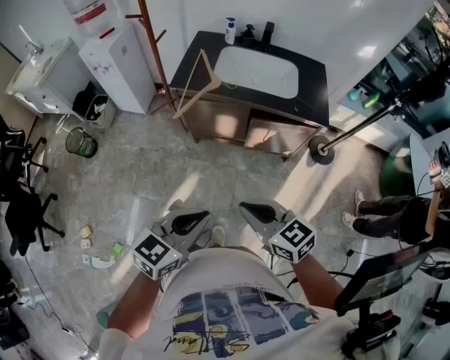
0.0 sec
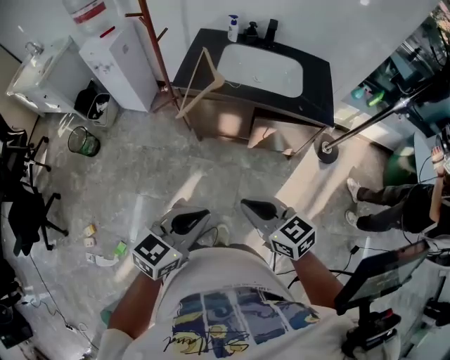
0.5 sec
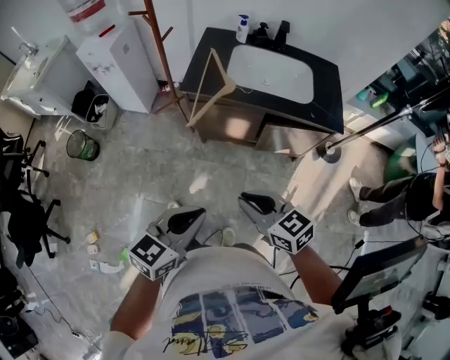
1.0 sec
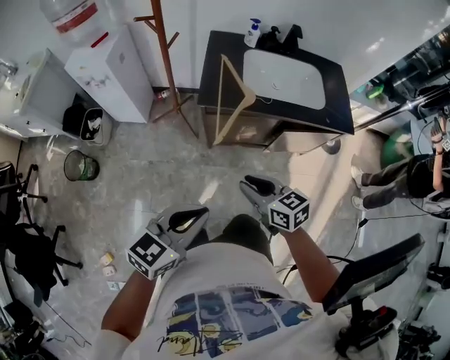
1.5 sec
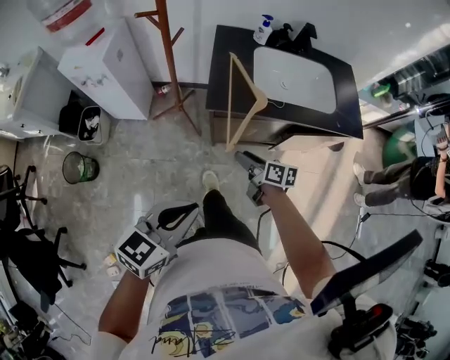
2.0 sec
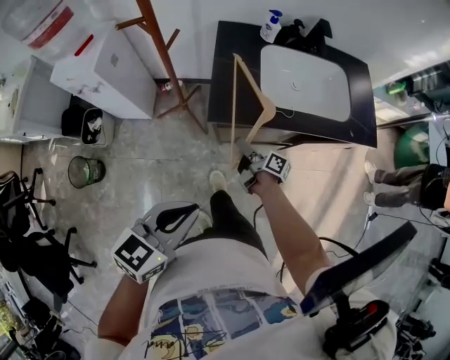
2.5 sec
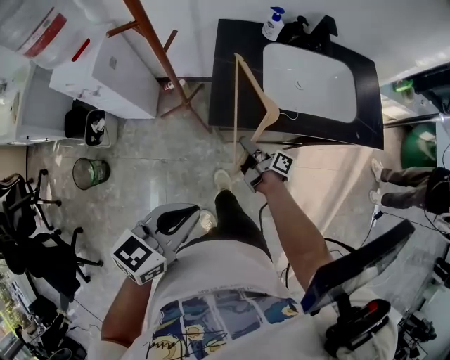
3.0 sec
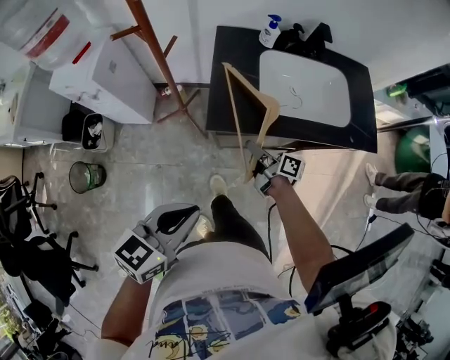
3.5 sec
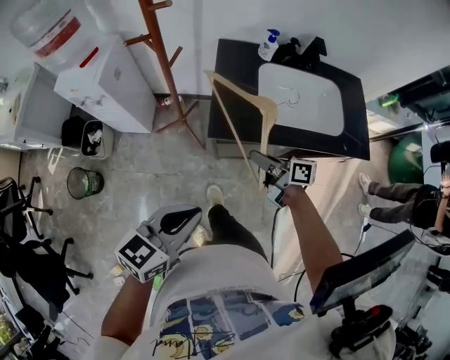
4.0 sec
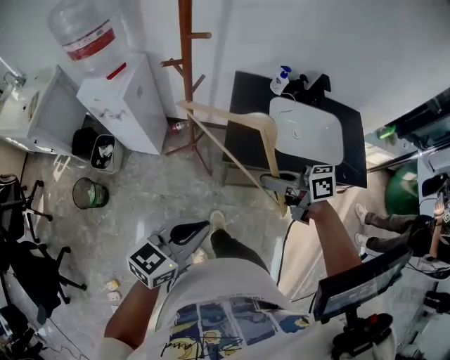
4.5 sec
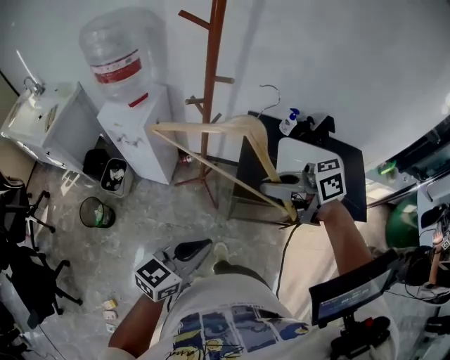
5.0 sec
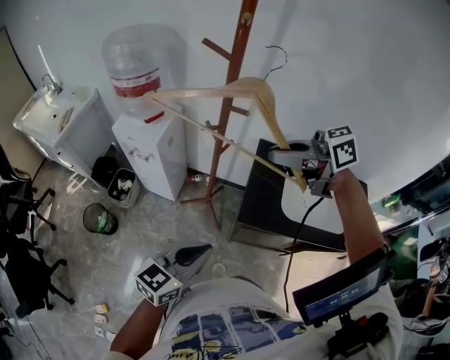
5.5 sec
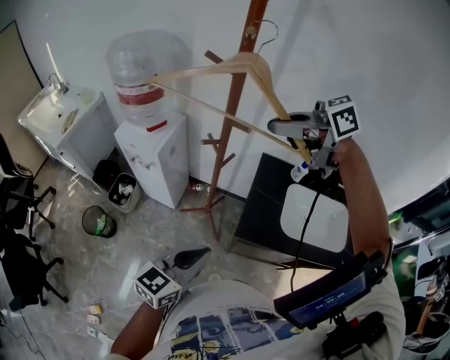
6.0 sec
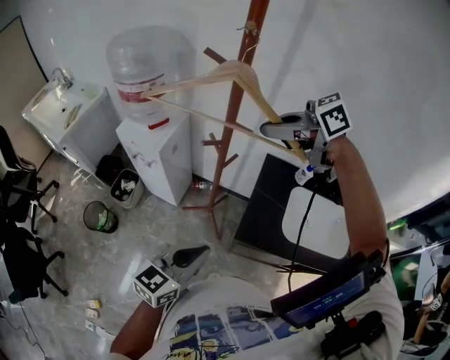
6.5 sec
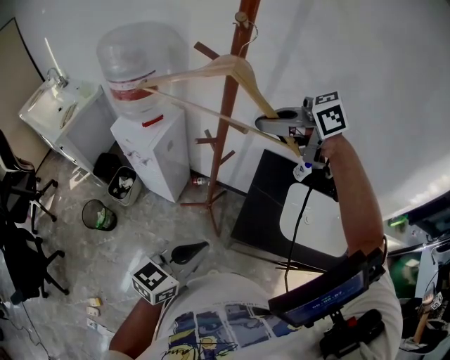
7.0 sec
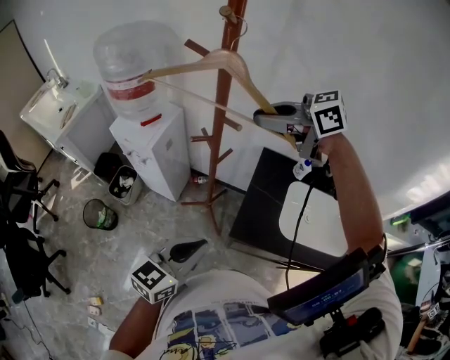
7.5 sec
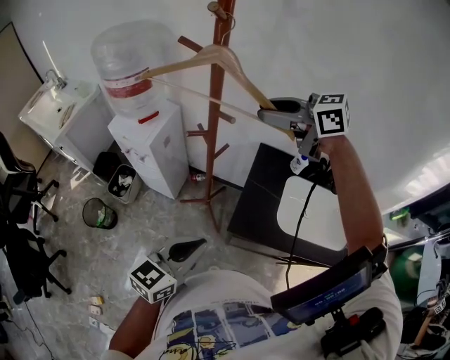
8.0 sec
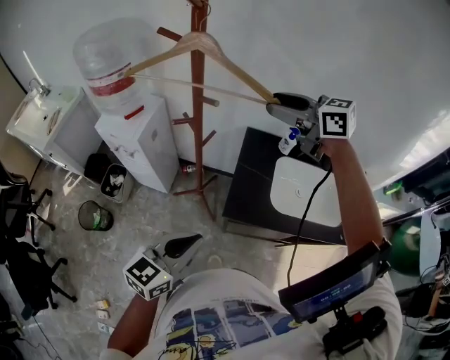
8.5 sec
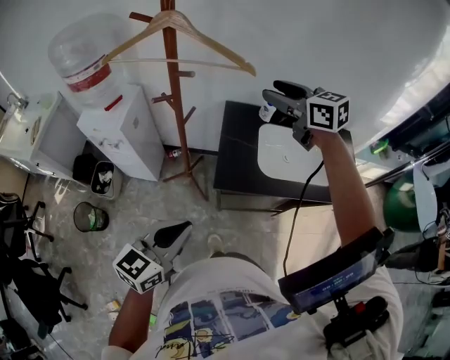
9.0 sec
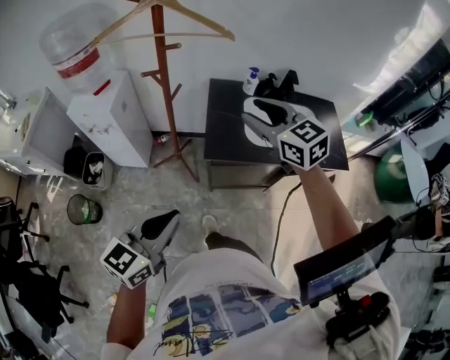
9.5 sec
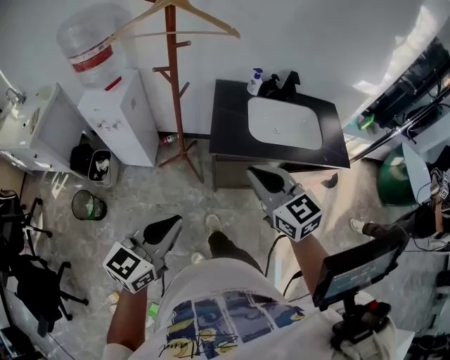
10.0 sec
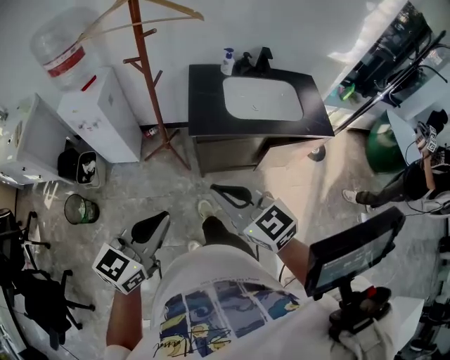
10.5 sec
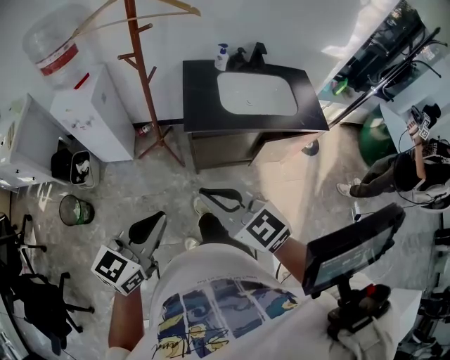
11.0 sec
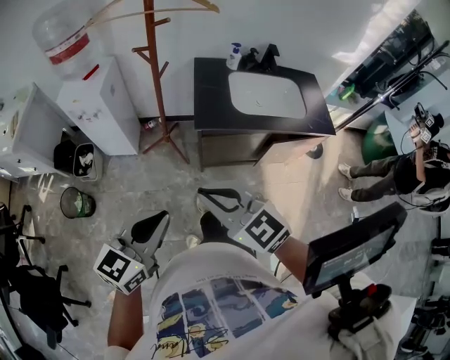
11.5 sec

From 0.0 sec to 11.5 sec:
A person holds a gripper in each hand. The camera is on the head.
From 0.0 sec to 2.0 sec: The right gripper travels forward, to the left and downward by some 40 cm, twists approximately 50 degrees clockwise, seen from behind, and opens up; the left gripper travels to the left and forward by some 35 cm.
From 2.0 sec to 4.0 sec: The right gripper goes some 15 cm forward and upward, turns by about 20 degrees, and closes its fingers; the left gripper is displaced forward by roughly 10 cm.
From 4.0 sec to 6.0 sec: The left gripper moves about 15 cm, and rotates roughly 20 degrees. Meanwhile the right gripper moves upward, some 40 cm, and rotates about 70 degrees.
From 6.0 sec to 7.5 sec: The left gripper shifts by about 5 cm, while the right gripper changes place by approximately 5 cm.
From 7.5 sec to 9.5 sec: The left gripper changes place by about 15 cm, while the right gripper changes place by about 25 cm, rotates some 50 degrees, and opens its fingers.
From 9.5 sec to 11.5 sec: The left gripper travels backward by roughly 10 cm; the right gripper is displaced backward and to the left by approximately 35 cm, and closes its fingers.

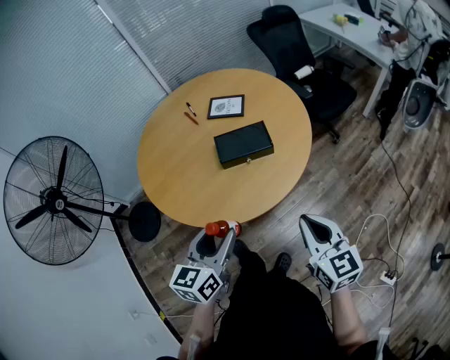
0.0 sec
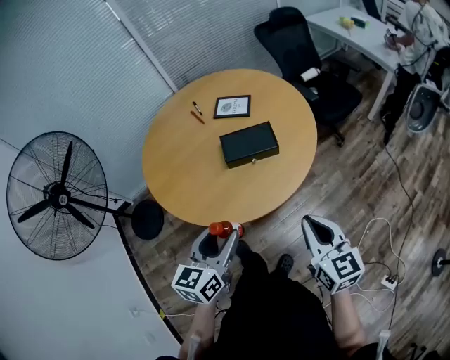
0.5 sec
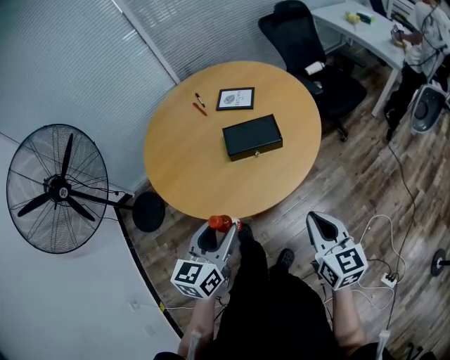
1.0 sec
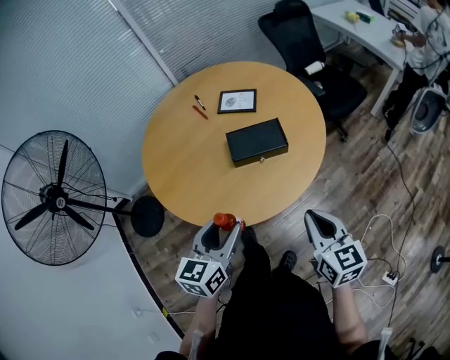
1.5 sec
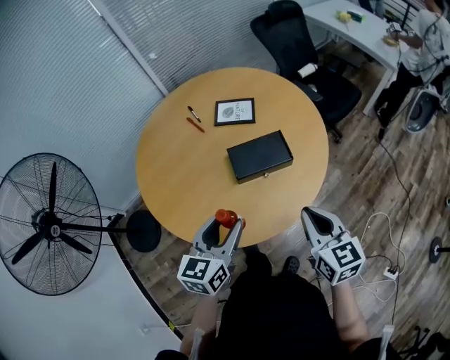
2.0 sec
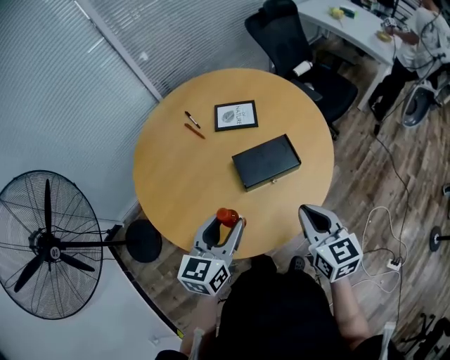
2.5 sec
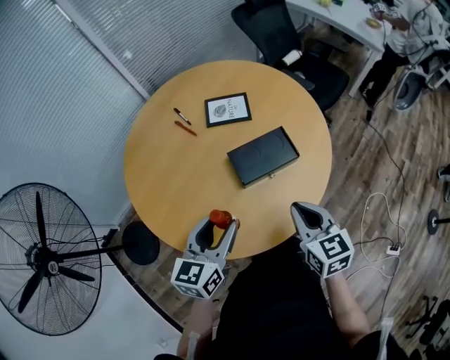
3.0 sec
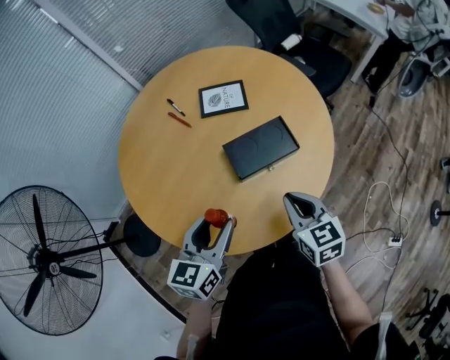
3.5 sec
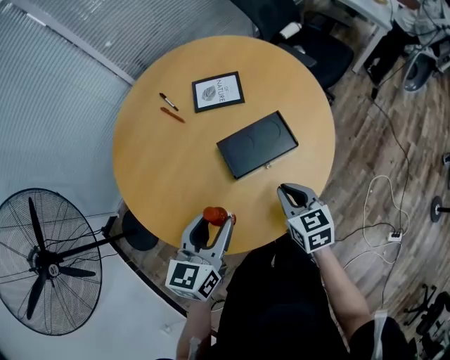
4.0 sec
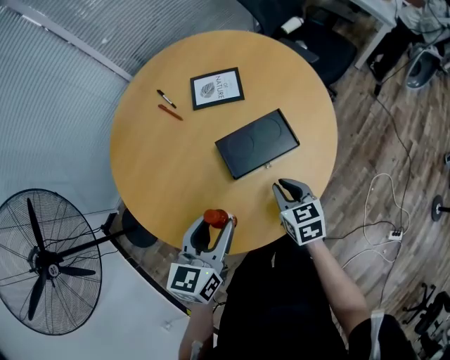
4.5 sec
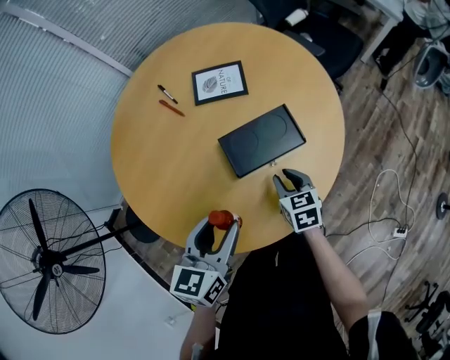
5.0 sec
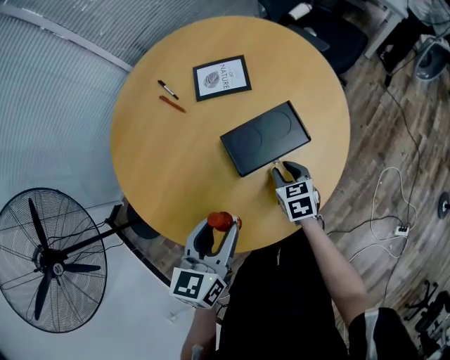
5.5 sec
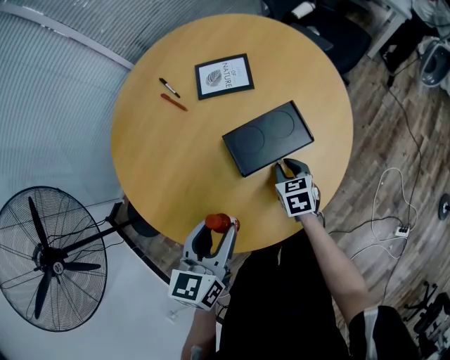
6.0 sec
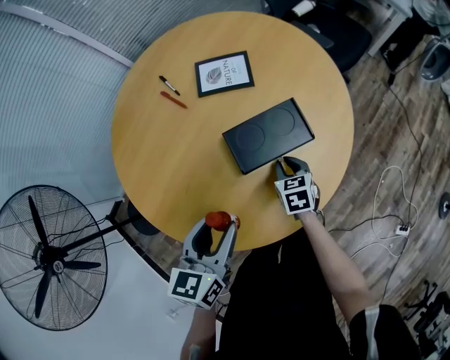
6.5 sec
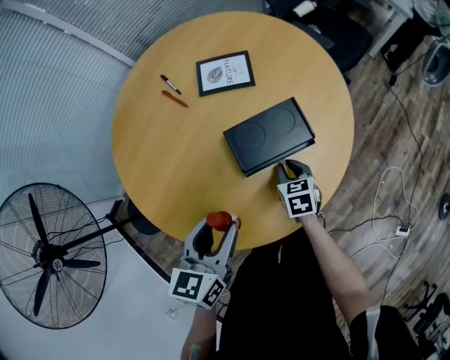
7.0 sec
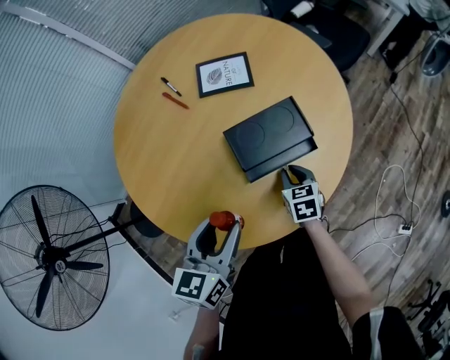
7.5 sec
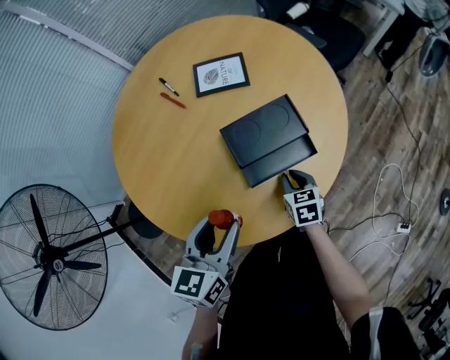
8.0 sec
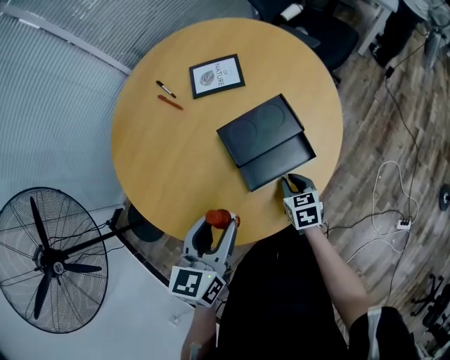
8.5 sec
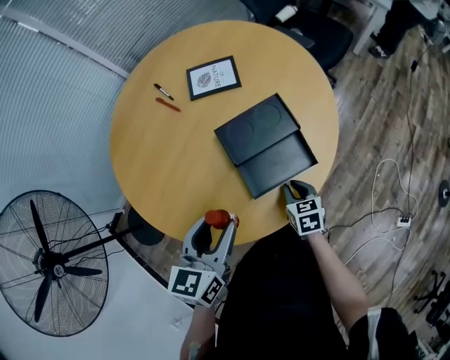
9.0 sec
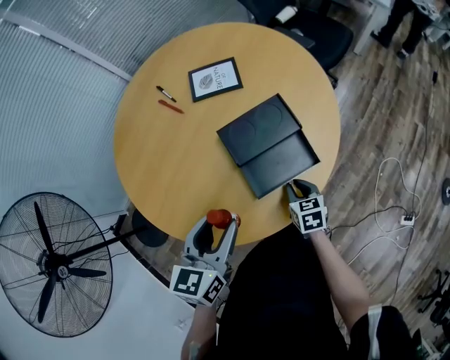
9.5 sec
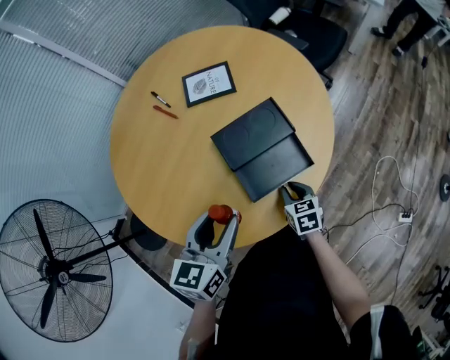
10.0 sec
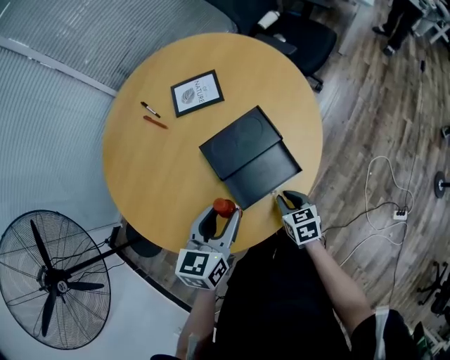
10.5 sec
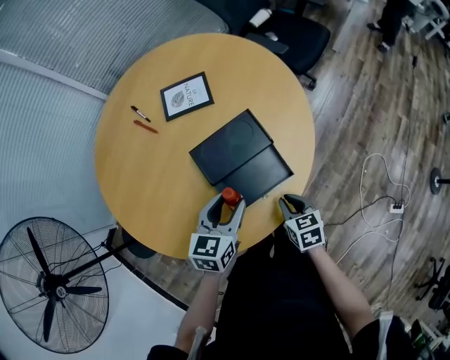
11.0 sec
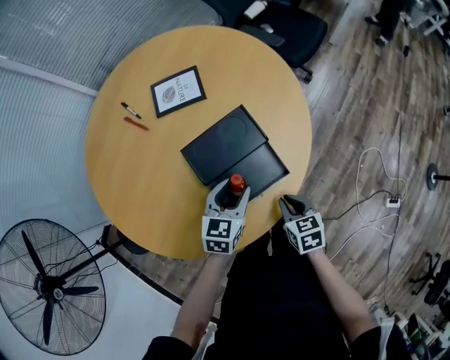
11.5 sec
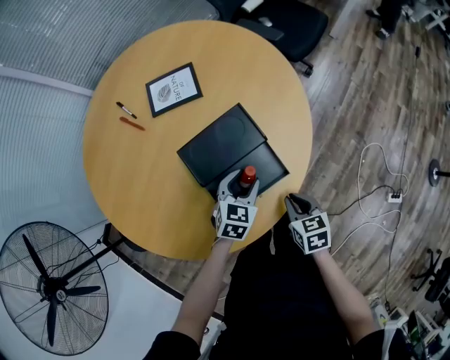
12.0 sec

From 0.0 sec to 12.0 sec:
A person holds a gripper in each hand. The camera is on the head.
From 0.0 sec to 2.0 sec: Both grippers travel together forward and to the left, some 15 cm.
From 2.0 sec to 4.0 sec: The left gripper shifts about 5 cm forward, while the right gripper moves downward, forward and to the left, some 20 cm.
From 4.0 sec to 6.0 sec: The right gripper is displaced downward and forward by approximately 15 cm.
From 6.0 sec to 8.0 sec: The right gripper travels backward by about 5 cm.
From 8.0 sec to 10.0 sec: The right gripper shifts by roughly 5 cm.
From 10.0 sec to 12.0 sec: The right gripper heads to the right, covering roughly 10 cm; the left gripper travels downward, to the right and forward by approximately 25 cm, and changes its angle by some 30 degrees.

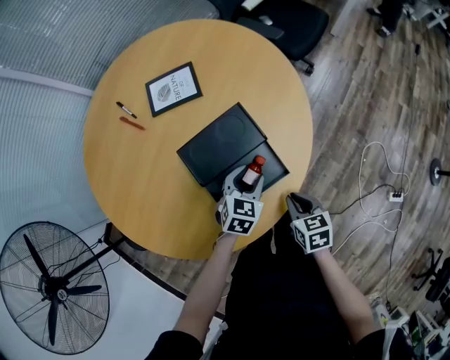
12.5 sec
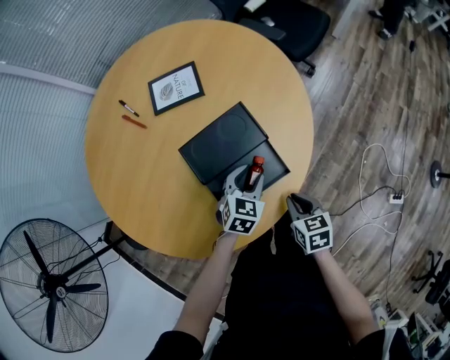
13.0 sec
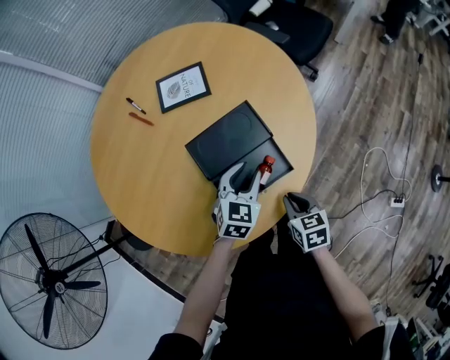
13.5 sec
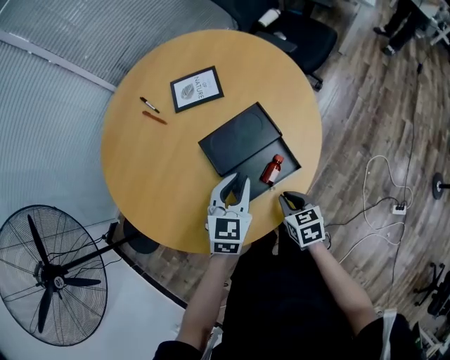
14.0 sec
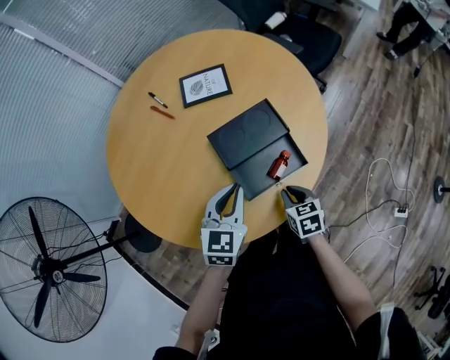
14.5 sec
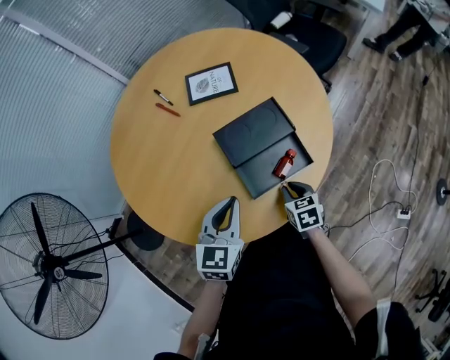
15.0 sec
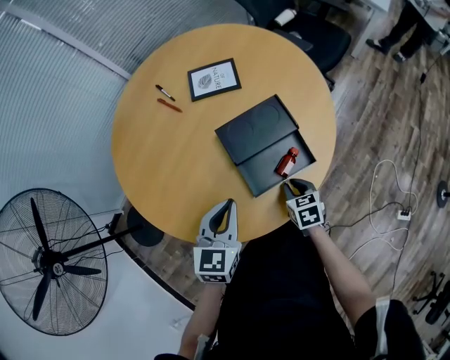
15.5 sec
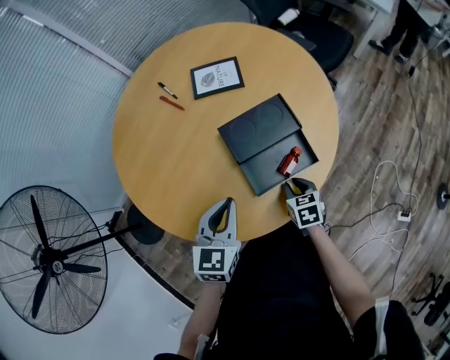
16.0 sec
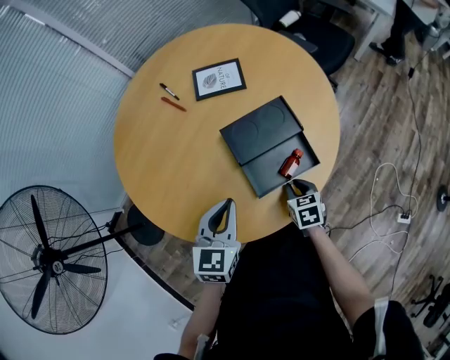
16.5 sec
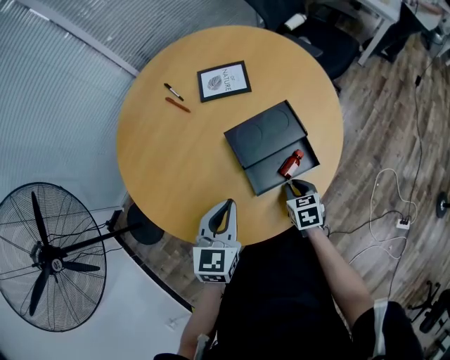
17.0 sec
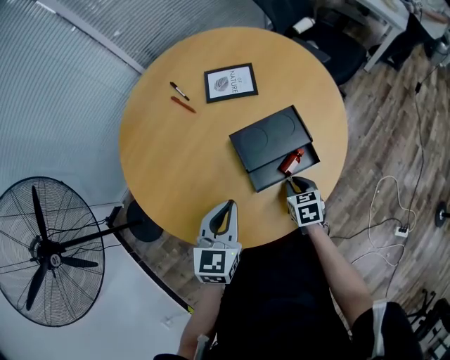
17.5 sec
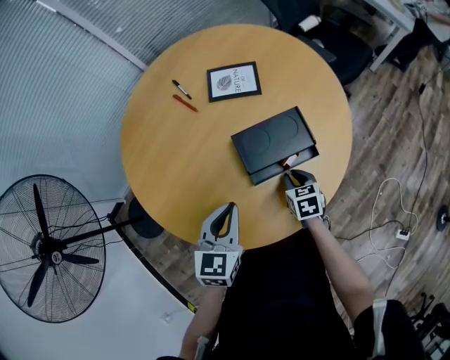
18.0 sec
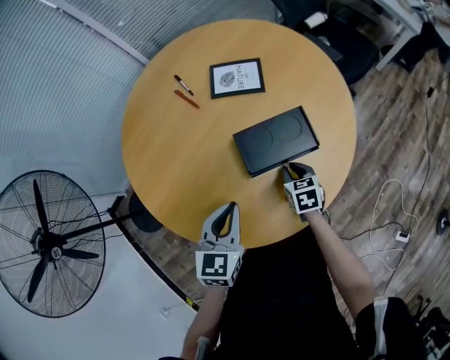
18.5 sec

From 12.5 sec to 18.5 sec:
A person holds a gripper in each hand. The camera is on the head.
From 12.5 sec to 14.5 sec: The right gripper shifts approximately 10 cm to the left, while the left gripper travels upward, to the left and backward by some 20 cm, swivels about 20 degrees, and closes up.
From 14.5 sec to 16.5 sec: The left gripper travels to the left by approximately 5 cm.
From 16.5 sec to 18.5 sec: The right gripper goes some 10 cm forward.
